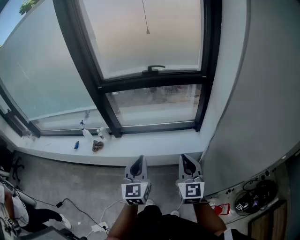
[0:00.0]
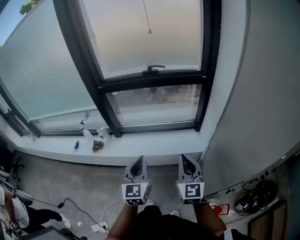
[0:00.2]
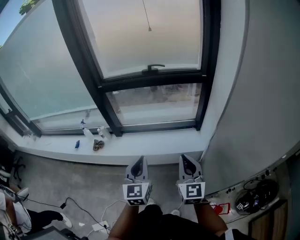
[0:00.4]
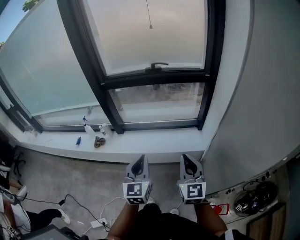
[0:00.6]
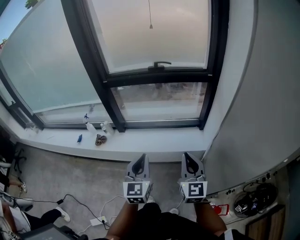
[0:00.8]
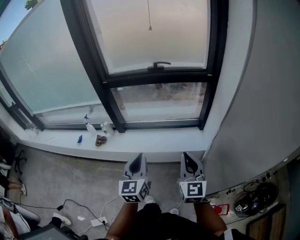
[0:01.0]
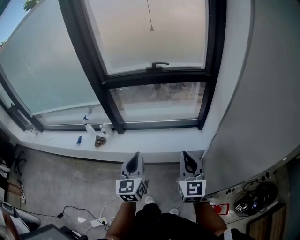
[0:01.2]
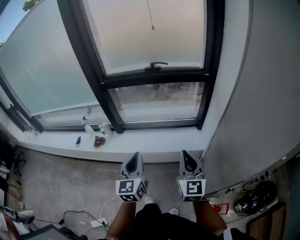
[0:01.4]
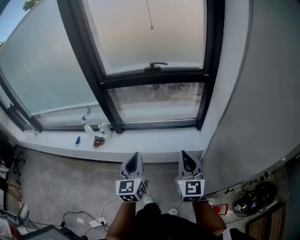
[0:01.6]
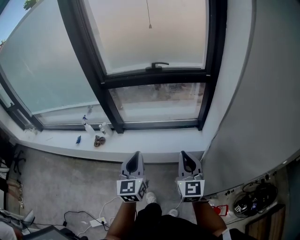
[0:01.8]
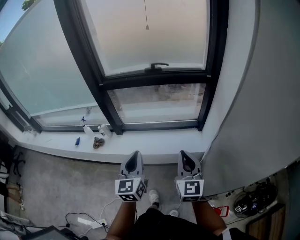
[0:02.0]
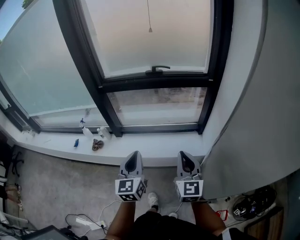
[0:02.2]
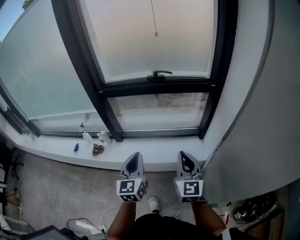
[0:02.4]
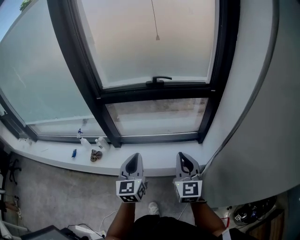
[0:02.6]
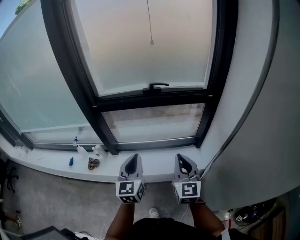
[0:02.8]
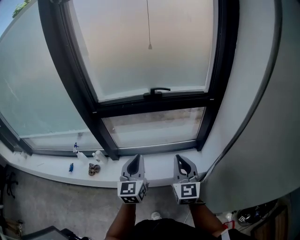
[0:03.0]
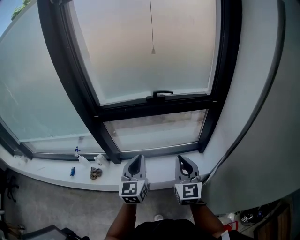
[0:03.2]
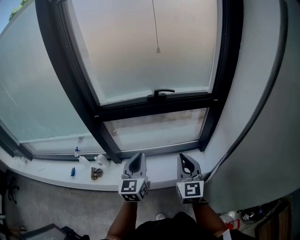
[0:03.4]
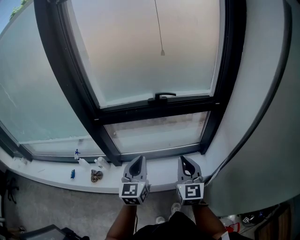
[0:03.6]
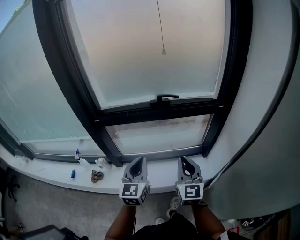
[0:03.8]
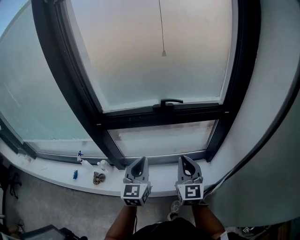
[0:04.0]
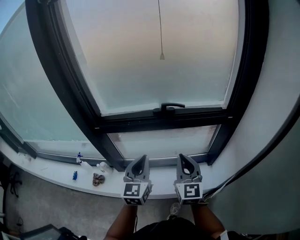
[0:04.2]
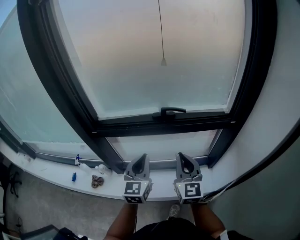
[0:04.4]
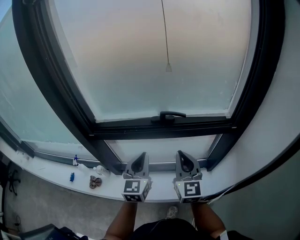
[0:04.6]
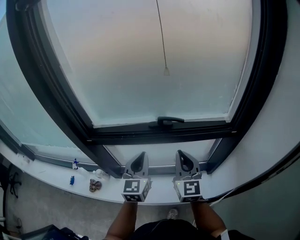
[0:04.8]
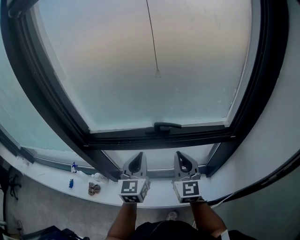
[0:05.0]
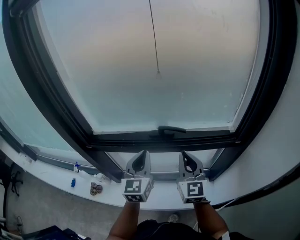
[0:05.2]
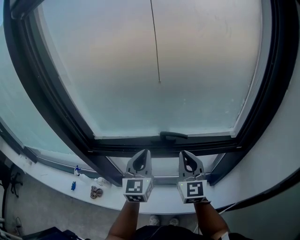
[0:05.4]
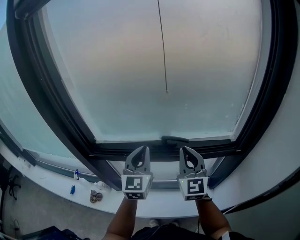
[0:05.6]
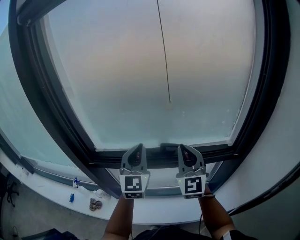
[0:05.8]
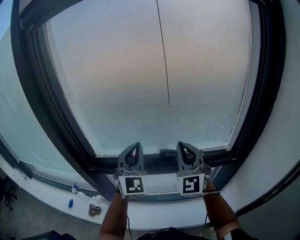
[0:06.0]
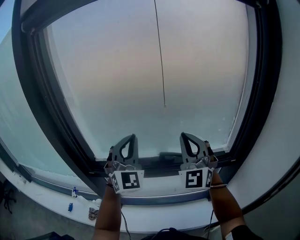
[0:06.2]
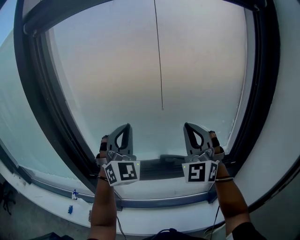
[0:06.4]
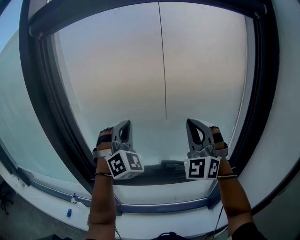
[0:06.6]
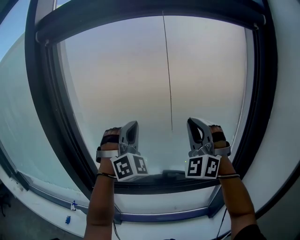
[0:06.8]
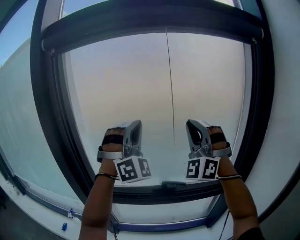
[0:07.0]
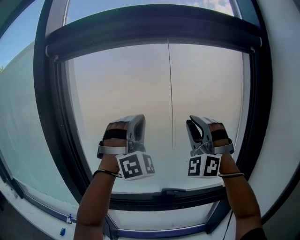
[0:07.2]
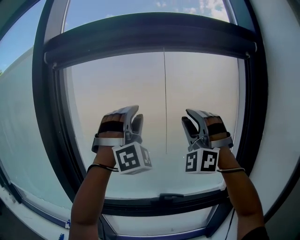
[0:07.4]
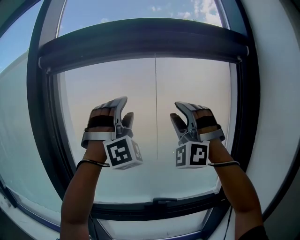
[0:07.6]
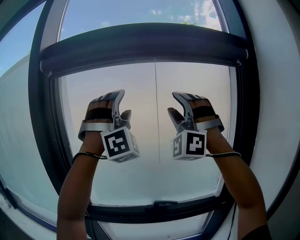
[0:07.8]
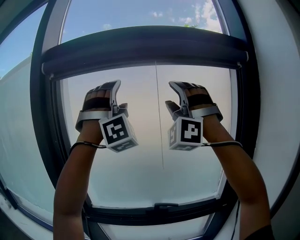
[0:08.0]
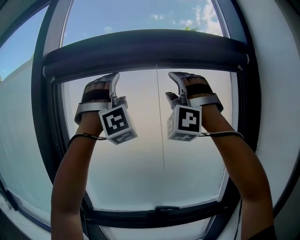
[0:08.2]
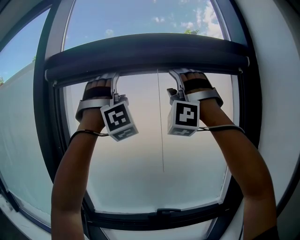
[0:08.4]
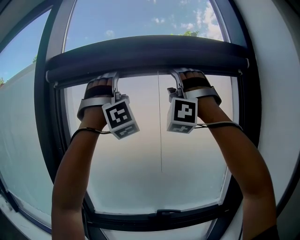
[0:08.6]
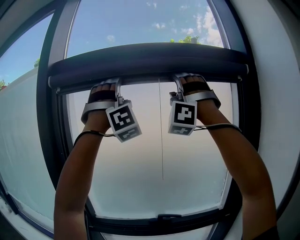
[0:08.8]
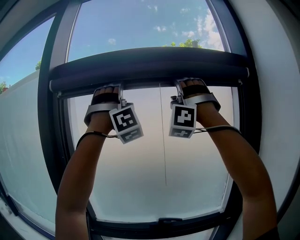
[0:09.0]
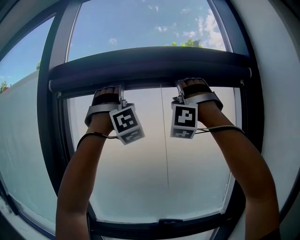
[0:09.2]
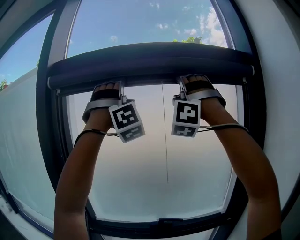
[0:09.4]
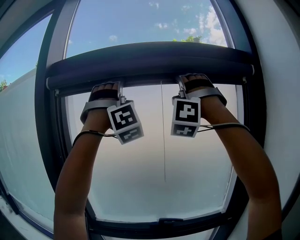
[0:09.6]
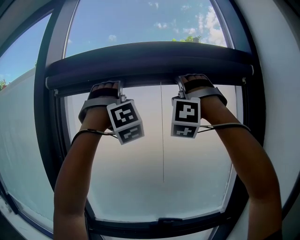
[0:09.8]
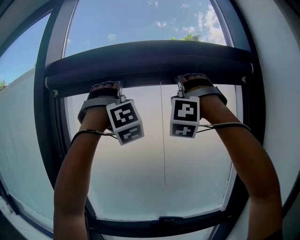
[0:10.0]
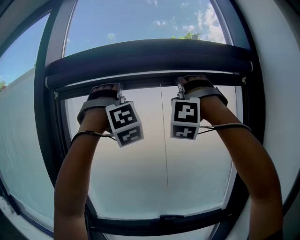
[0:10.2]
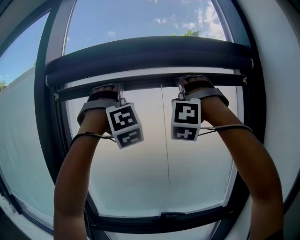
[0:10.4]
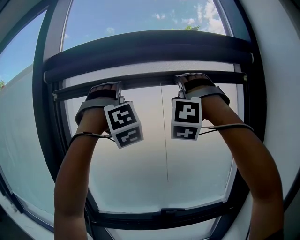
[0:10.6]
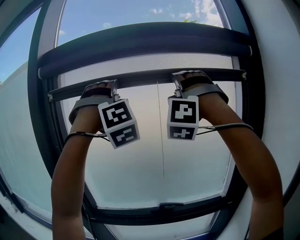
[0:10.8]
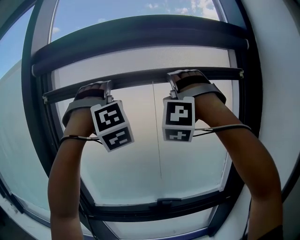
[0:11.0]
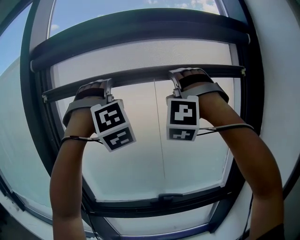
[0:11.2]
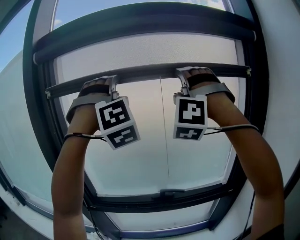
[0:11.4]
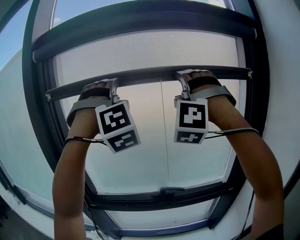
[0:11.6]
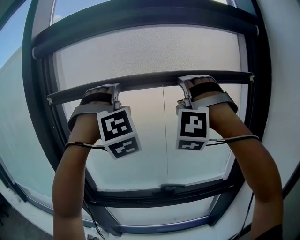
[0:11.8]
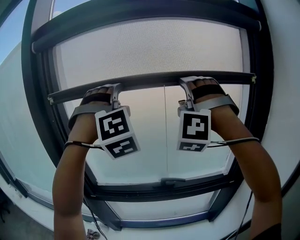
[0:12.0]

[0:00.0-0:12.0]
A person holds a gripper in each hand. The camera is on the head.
0:00.0 to 0:01.6: The grippers make only small movements.
0:01.6 to 0:03.0: Both grippers travel together forward, some 20 cm.
0:03.0 to 0:04.4: Both grippers move forward, about 20 cm.
0:04.4 to 0:06.0: The left gripper heads upward and forward, covering approximately 25 cm, and changes its angle by roughly 40 degrees. The right gripper is displaced forward and upward by about 20 cm, and turns by about 30 degrees.
0:06.0 to 0:07.6: Both grippers travel together upward, approximately 35 cm. The right gripper rolls counterclockwise, seen from behind, by some 60 degrees, and opens, while the left gripper rotates around the line of its fingers by some 60 degrees, clockwise from behind, and opens.
0:07.6 to 0:09.0: The two grippers go some 15 cm upward. The right gripper opens.
0:09.0 to 0:10.4: The grippers make only small movements.
0:10.4 to 0:12.0: The two grippers go some 20 cm downward.

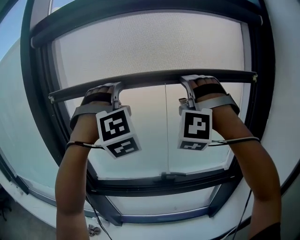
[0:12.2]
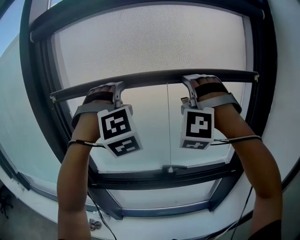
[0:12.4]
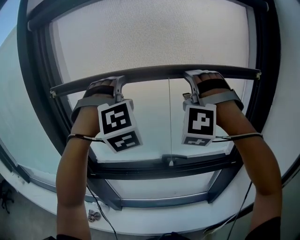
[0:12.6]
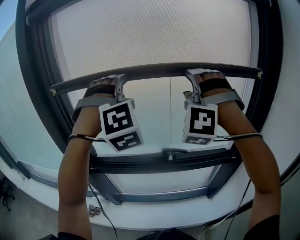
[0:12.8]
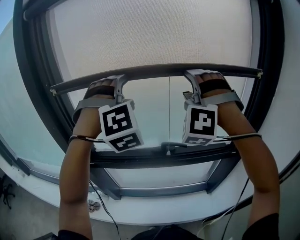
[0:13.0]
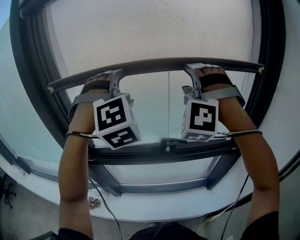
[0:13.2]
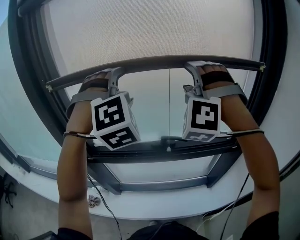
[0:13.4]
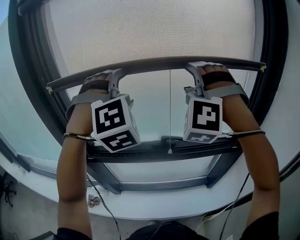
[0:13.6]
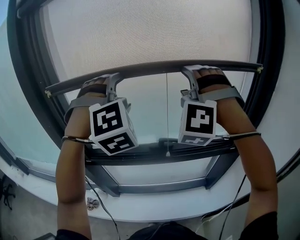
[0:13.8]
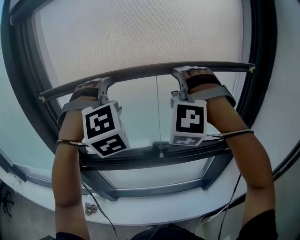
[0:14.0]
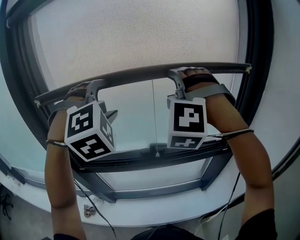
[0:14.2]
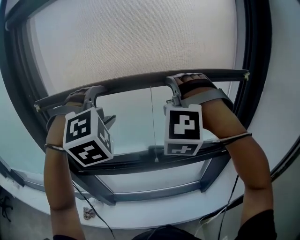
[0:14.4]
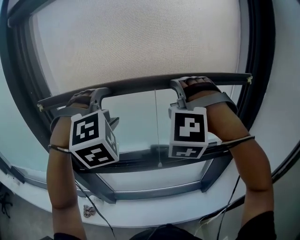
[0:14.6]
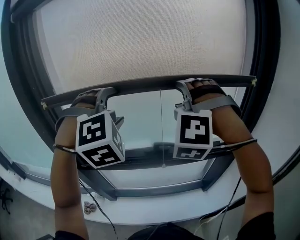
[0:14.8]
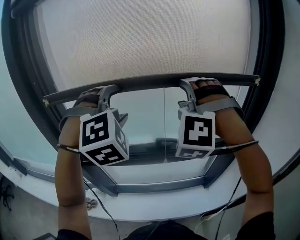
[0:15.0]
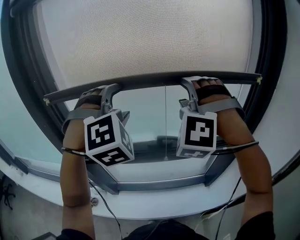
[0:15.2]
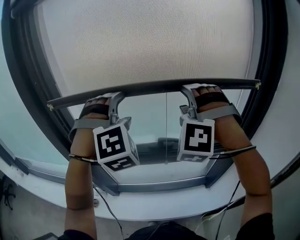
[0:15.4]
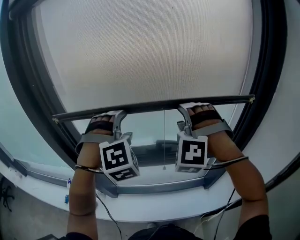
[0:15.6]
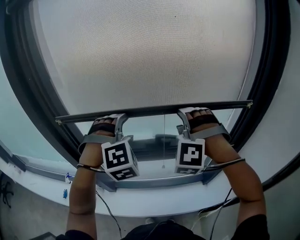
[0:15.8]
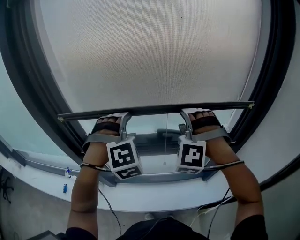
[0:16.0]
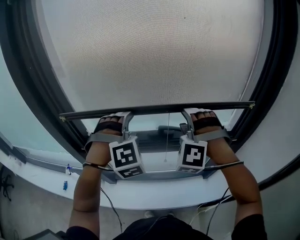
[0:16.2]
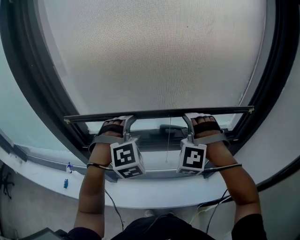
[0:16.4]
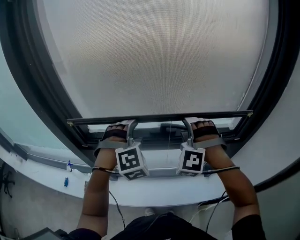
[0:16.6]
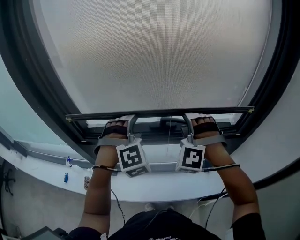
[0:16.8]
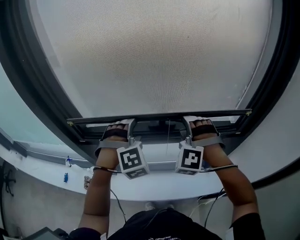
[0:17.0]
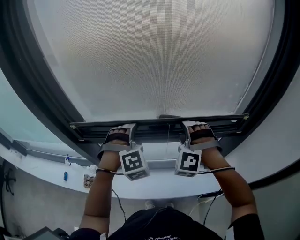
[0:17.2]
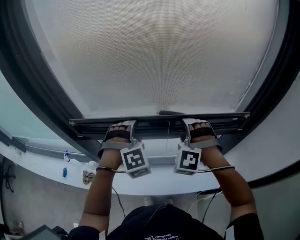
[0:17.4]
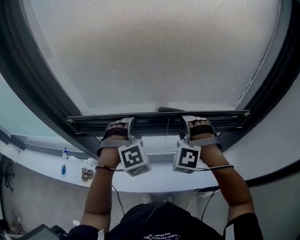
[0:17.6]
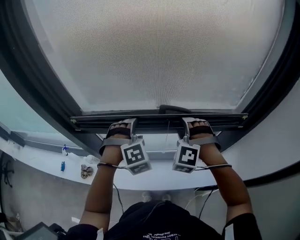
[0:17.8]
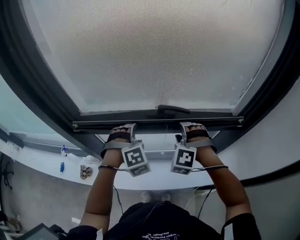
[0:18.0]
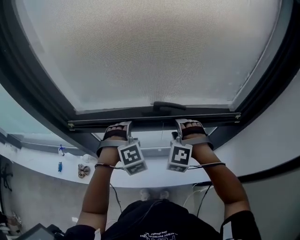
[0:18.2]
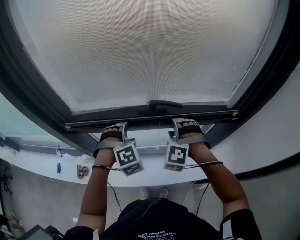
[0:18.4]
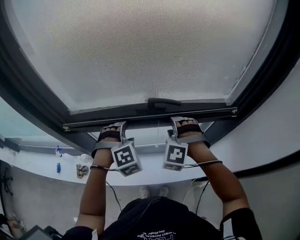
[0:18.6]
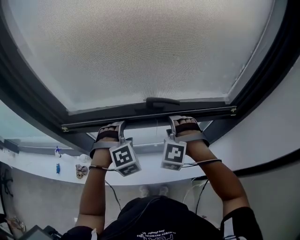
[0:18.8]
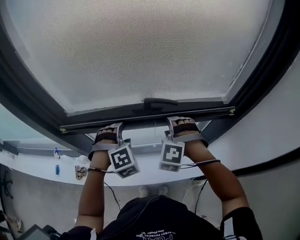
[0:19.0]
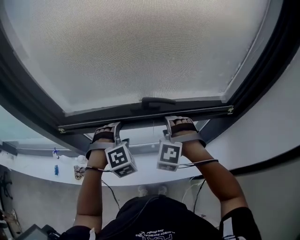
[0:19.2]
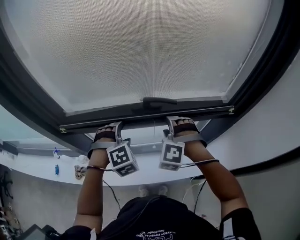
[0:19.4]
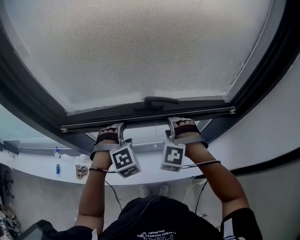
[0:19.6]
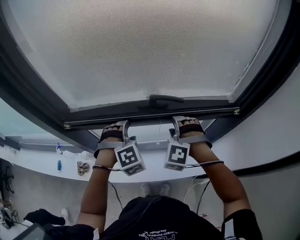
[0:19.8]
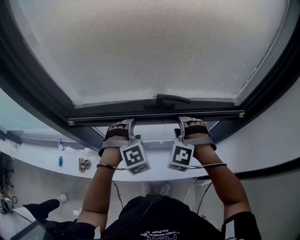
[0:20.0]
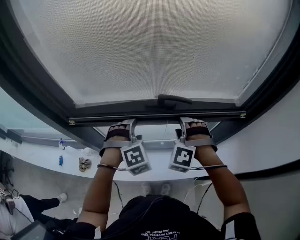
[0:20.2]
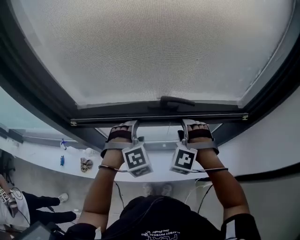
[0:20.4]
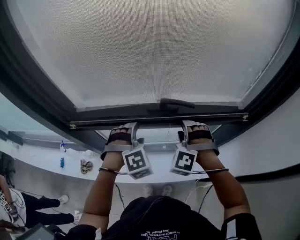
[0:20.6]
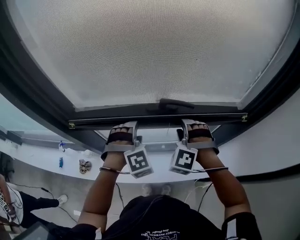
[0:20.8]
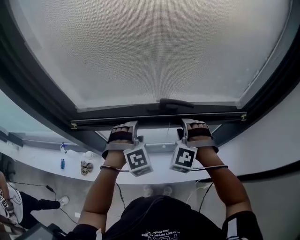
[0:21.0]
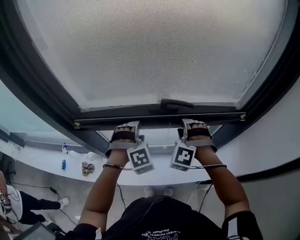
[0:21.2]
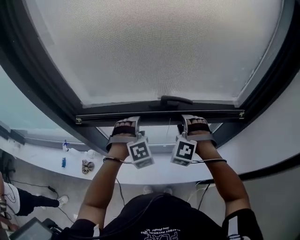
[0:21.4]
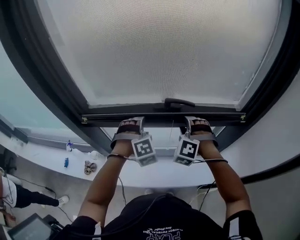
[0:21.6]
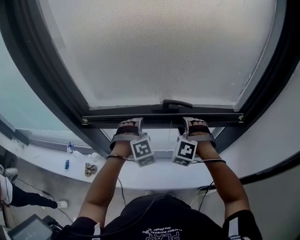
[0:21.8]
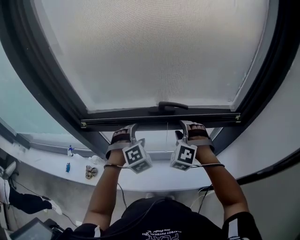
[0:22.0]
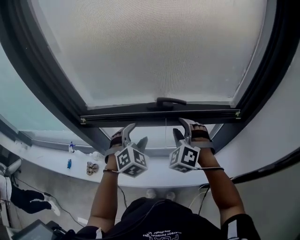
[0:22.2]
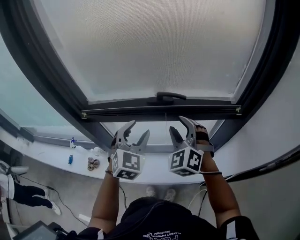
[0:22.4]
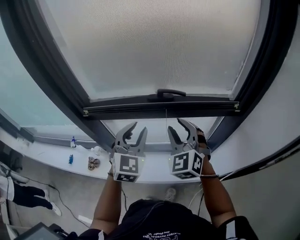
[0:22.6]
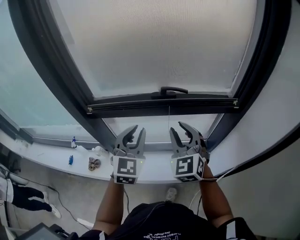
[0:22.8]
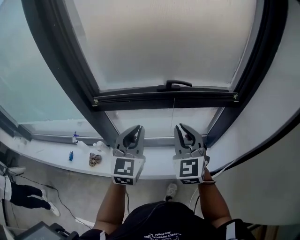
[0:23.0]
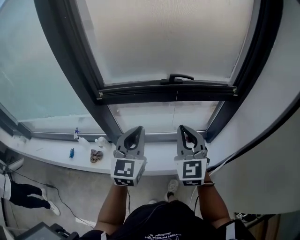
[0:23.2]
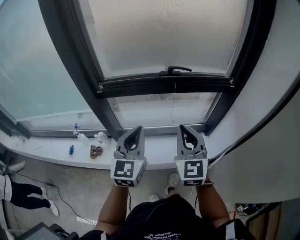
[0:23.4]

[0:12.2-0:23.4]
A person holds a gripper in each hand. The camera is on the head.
0:12.2 to 0:13.8: Both grippers move downward, approximately 10 cm.
0:13.8 to 0:15.4: The grippers move only a little.
0:15.4 to 0:17.0: Both grippers travel together downward, some 25 cm.
0:17.0 to 0:18.6: The two grippers go roughly 10 cm downward.
0:18.6 to 0:20.2: Both grippers stay put.
0:20.2 to 0:21.8: The grippers move only a little.
0:21.8 to 0:23.4: The two grippers go about 30 cm backward. The right gripper twists approximately 60 degrees clockwise, seen from behind, and closes; the left gripper twists roughly 70 degrees counterclockwise, seen from behind, and closes up.

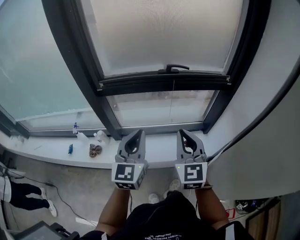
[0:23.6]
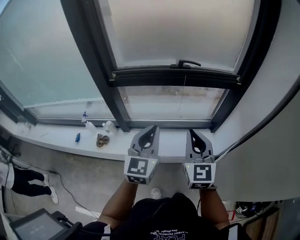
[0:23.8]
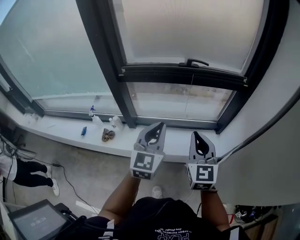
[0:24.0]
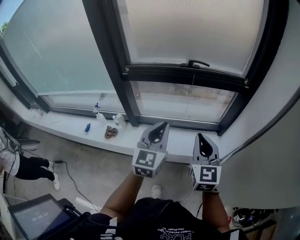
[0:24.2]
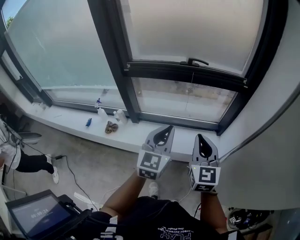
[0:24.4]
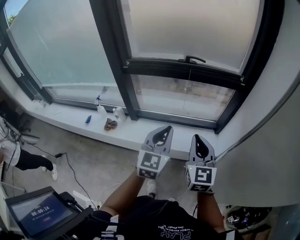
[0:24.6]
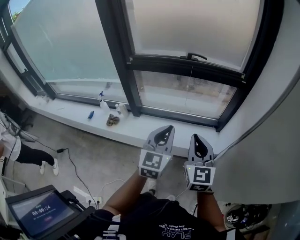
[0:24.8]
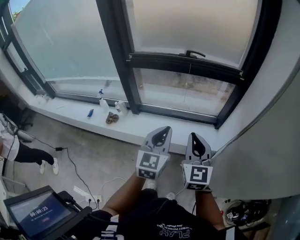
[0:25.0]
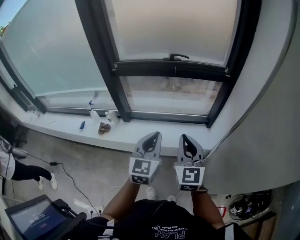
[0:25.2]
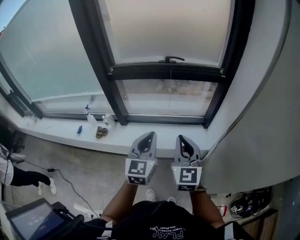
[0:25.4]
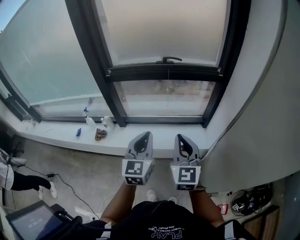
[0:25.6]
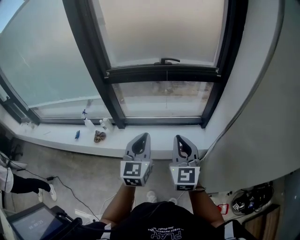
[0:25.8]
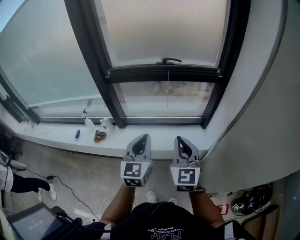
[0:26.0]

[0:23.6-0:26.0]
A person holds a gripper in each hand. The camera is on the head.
0:23.6 to 0:24.8: The left gripper travels to the right and backward by roughly 20 cm. The right gripper shifts roughly 15 cm backward and to the right.
0:24.8 to 0:26.0: The left gripper changes place by roughly 5 cm.
